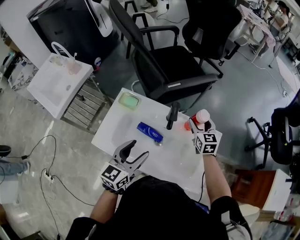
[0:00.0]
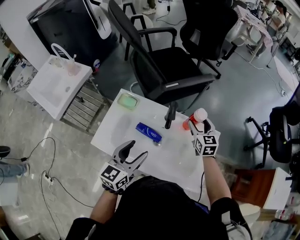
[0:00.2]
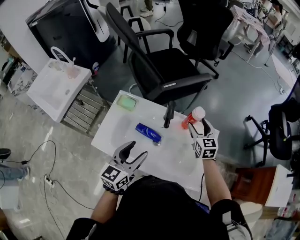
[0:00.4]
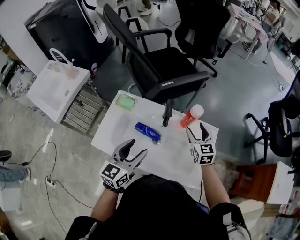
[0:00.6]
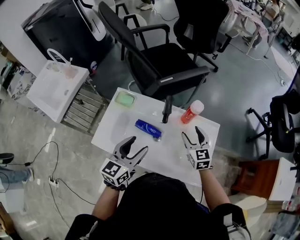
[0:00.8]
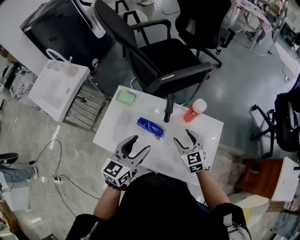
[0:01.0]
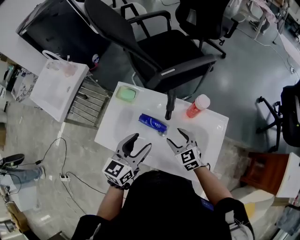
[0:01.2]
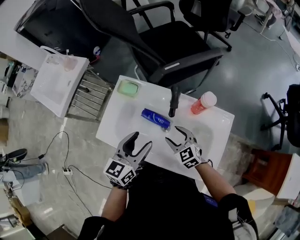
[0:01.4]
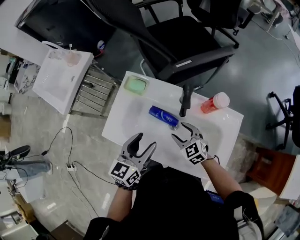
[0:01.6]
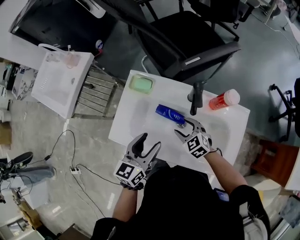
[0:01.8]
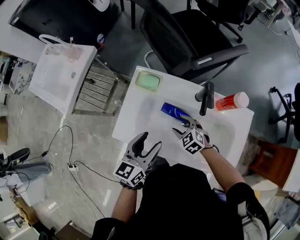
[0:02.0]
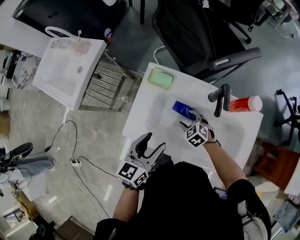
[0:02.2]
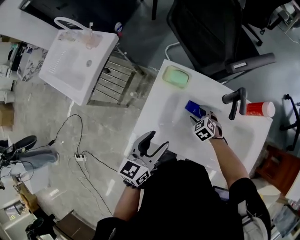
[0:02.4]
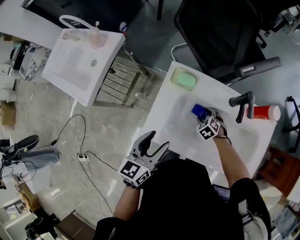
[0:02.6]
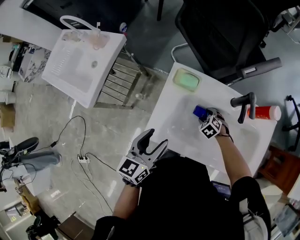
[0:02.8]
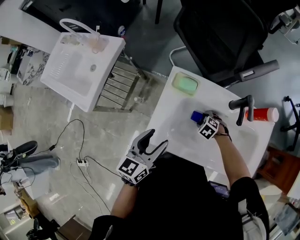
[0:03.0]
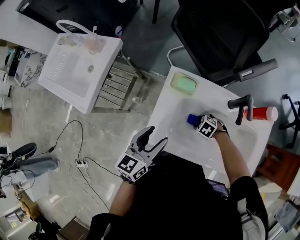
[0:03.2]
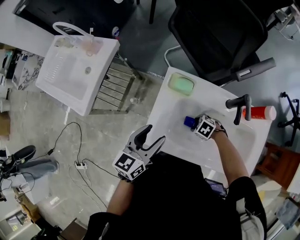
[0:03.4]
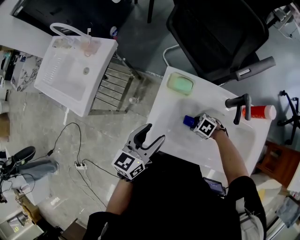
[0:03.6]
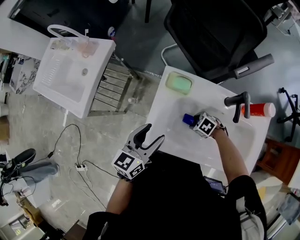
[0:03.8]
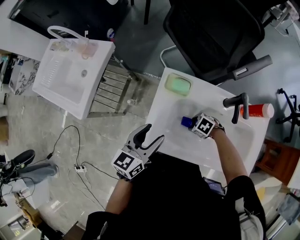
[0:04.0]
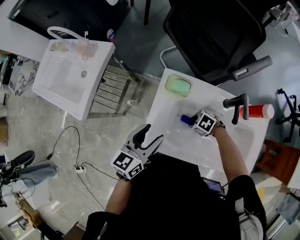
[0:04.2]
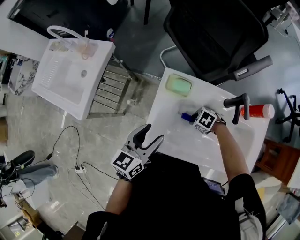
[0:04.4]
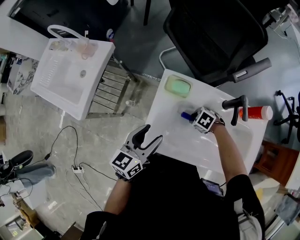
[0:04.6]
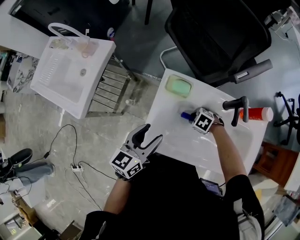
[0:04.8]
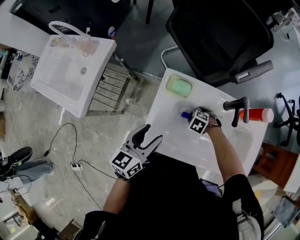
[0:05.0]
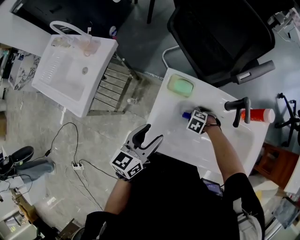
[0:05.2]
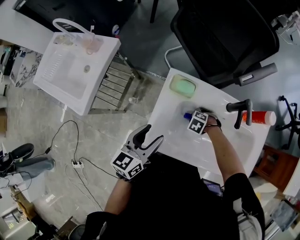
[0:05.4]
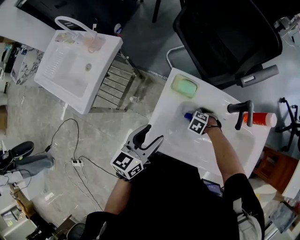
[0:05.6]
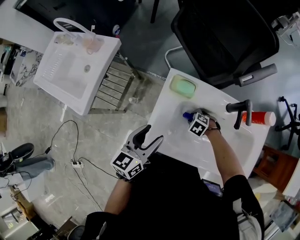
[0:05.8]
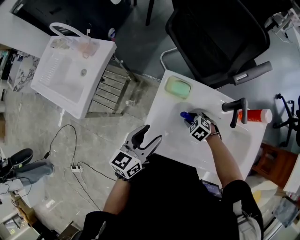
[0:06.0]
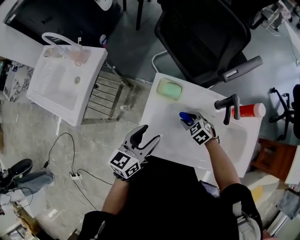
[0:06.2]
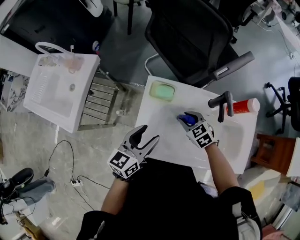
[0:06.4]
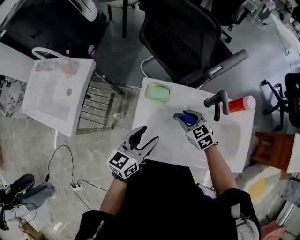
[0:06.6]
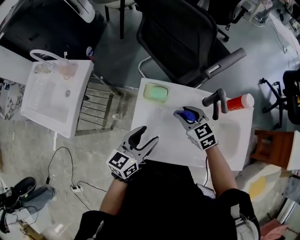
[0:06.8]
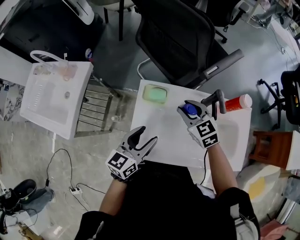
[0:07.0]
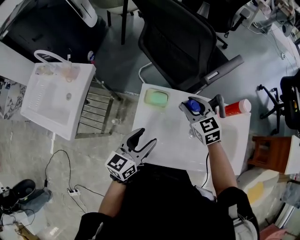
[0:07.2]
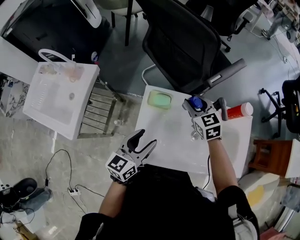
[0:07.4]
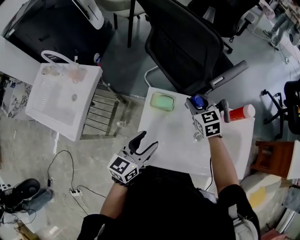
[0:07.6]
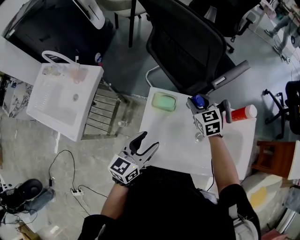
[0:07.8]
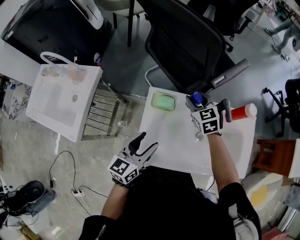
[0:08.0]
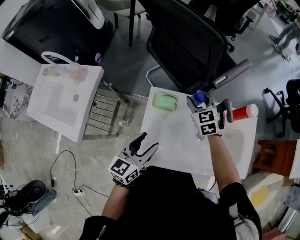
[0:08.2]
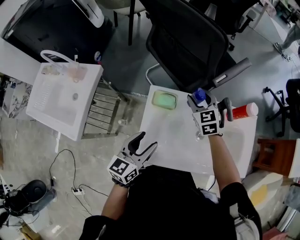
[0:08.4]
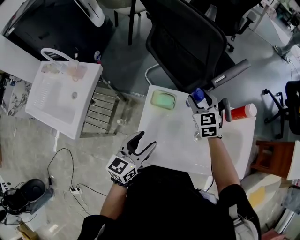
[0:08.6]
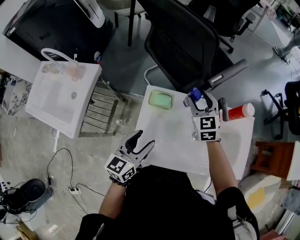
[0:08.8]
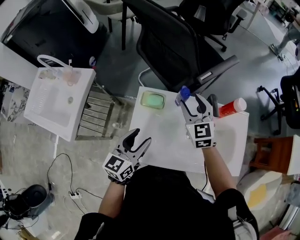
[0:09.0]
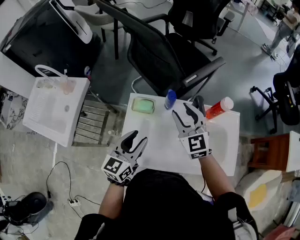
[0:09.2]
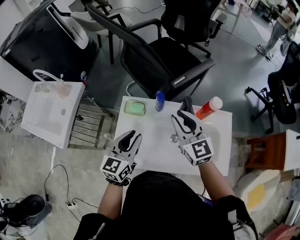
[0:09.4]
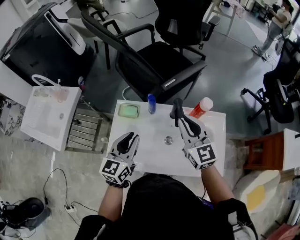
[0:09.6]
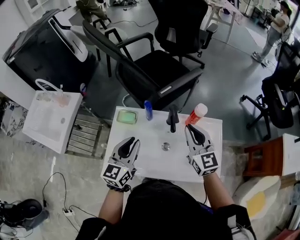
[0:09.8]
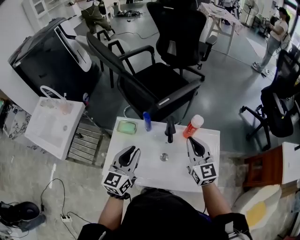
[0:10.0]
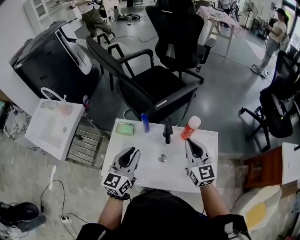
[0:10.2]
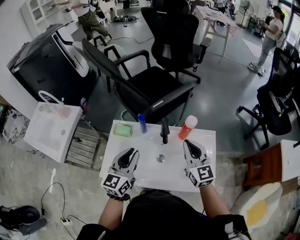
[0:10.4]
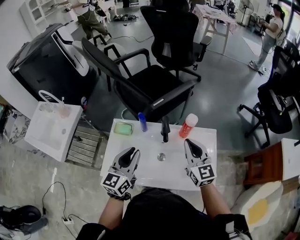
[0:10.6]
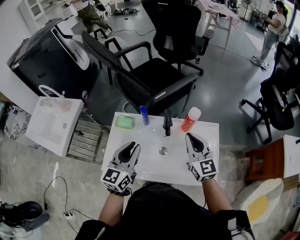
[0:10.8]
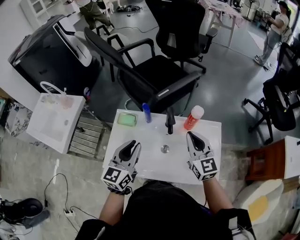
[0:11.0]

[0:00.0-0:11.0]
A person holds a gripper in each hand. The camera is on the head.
0:00.0 to 0:01.6: The right gripper goes roughly 25 cm backward, to the left and downward, and swivels approximately 30 degrees.
0:01.6 to 0:03.2: The right gripper goes some 15 cm downward, and angles its fingers downward, by some 40 degrees; the left gripper ends up about 20 cm from where it was.
0:03.2 to 0:04.8: The right gripper moves approximately 5 cm, and closes up.
0:04.8 to 0:06.2: The right gripper shifts by about 5 cm, and turns by about 30 degrees.
0:06.2 to 0:07.8: The right gripper travels upward and forward by some 20 cm, and rotates roughly 30 degrees.
0:07.8 to 0:09.4: The right gripper moves upward, backward and to the right, some 20 cm, and swivels some 20 degrees; the left gripper heads to the right, covering about 10 cm, and closes up.
0:09.4 to 0:11.0: The right gripper goes about 15 cm to the right, while the left gripper is displaced to the right by about 10 cm.

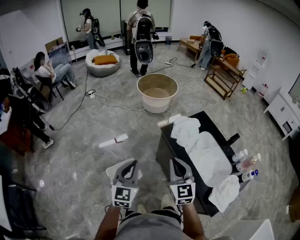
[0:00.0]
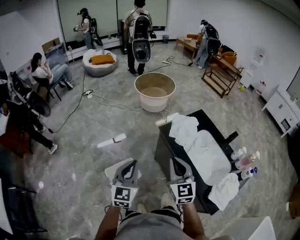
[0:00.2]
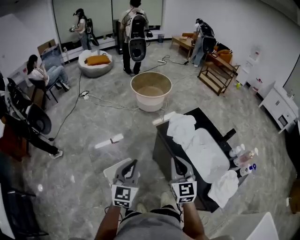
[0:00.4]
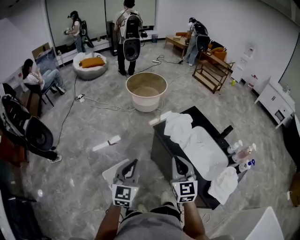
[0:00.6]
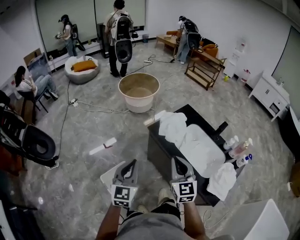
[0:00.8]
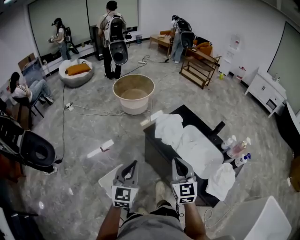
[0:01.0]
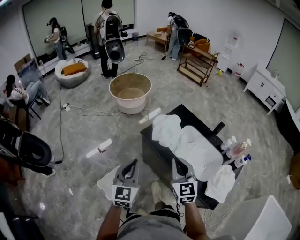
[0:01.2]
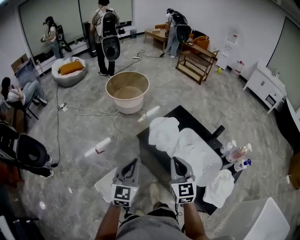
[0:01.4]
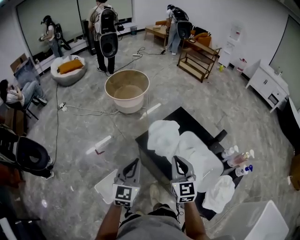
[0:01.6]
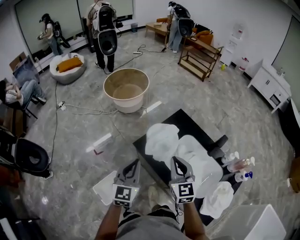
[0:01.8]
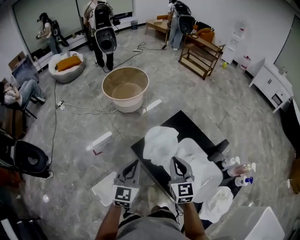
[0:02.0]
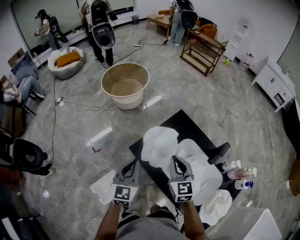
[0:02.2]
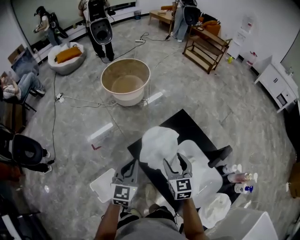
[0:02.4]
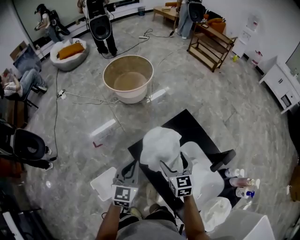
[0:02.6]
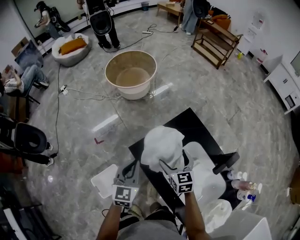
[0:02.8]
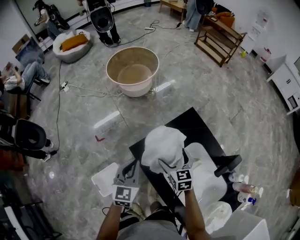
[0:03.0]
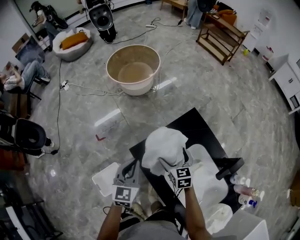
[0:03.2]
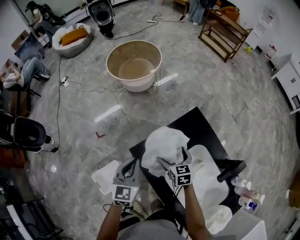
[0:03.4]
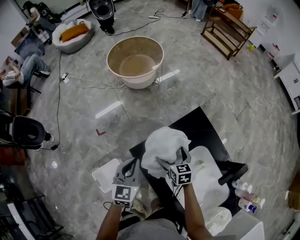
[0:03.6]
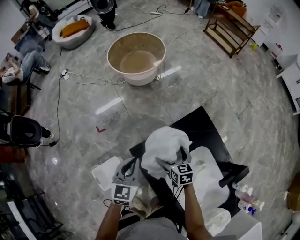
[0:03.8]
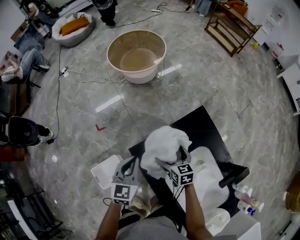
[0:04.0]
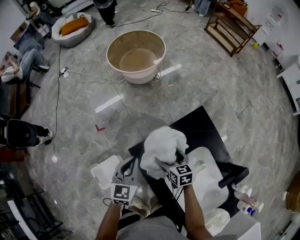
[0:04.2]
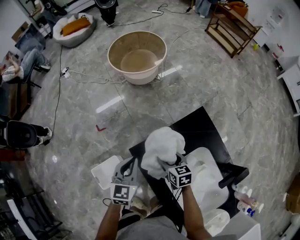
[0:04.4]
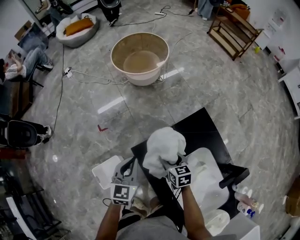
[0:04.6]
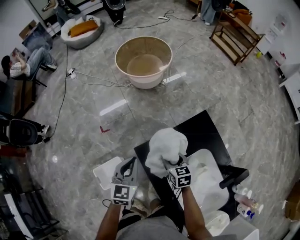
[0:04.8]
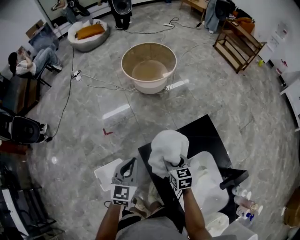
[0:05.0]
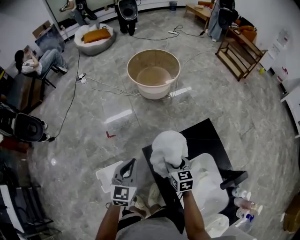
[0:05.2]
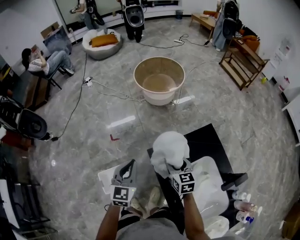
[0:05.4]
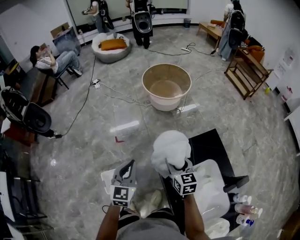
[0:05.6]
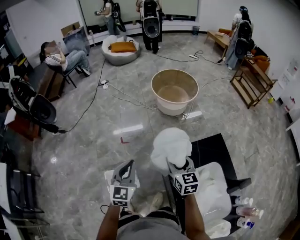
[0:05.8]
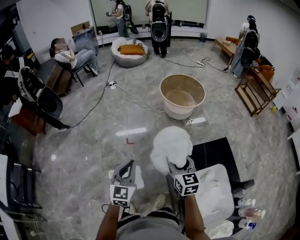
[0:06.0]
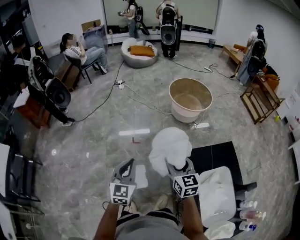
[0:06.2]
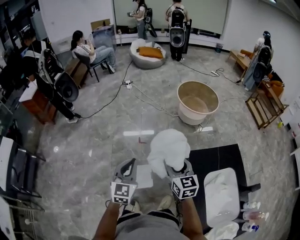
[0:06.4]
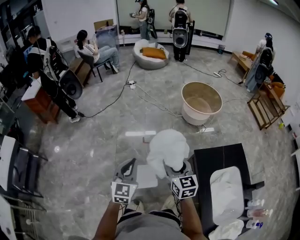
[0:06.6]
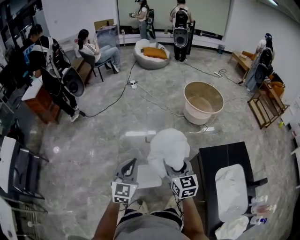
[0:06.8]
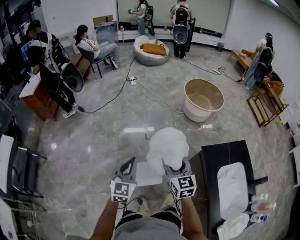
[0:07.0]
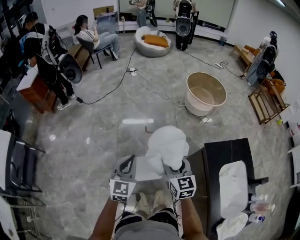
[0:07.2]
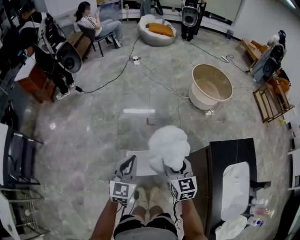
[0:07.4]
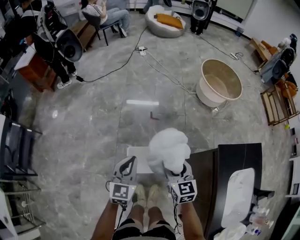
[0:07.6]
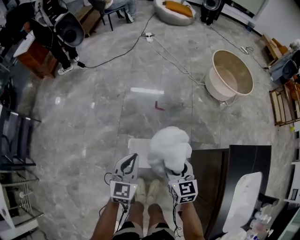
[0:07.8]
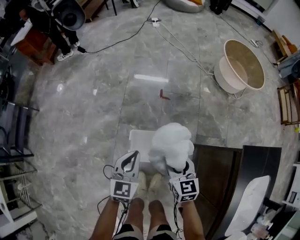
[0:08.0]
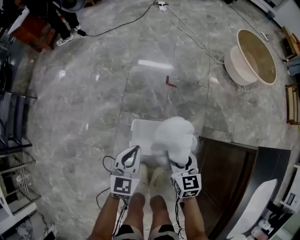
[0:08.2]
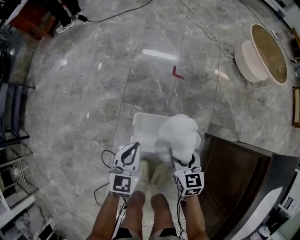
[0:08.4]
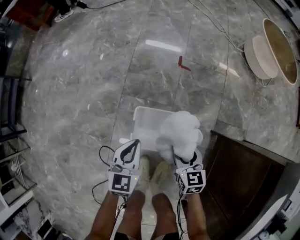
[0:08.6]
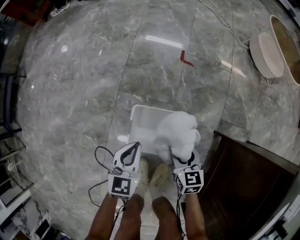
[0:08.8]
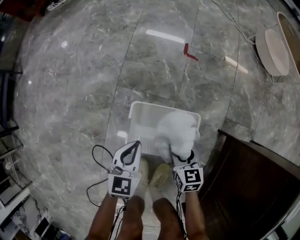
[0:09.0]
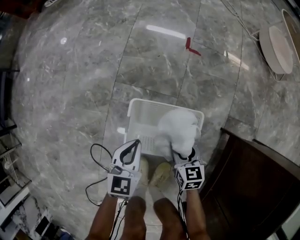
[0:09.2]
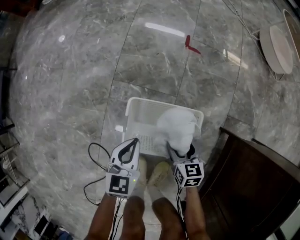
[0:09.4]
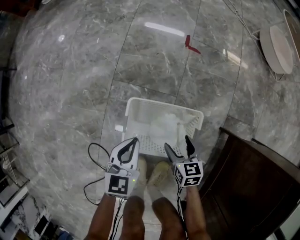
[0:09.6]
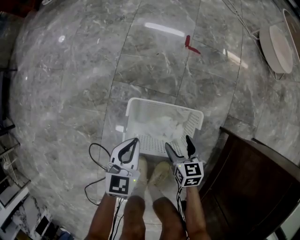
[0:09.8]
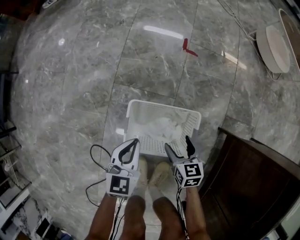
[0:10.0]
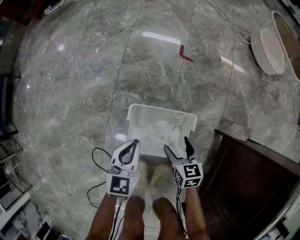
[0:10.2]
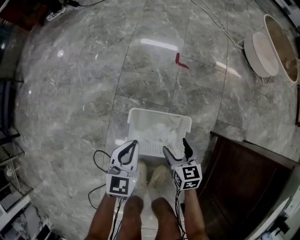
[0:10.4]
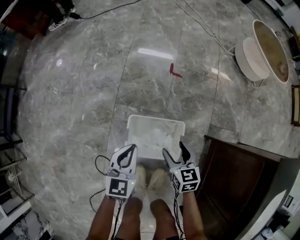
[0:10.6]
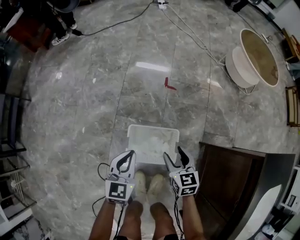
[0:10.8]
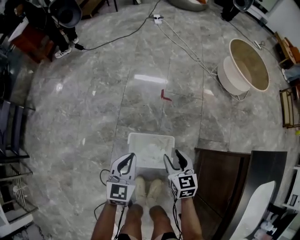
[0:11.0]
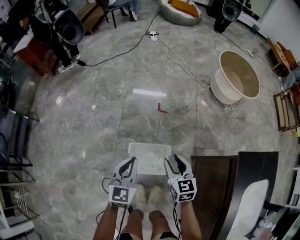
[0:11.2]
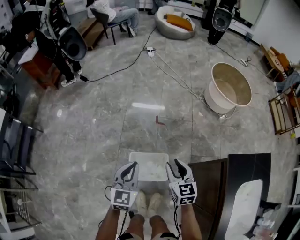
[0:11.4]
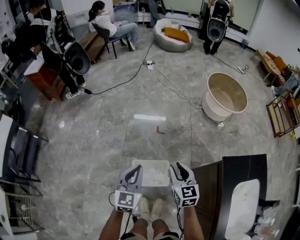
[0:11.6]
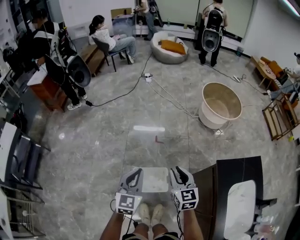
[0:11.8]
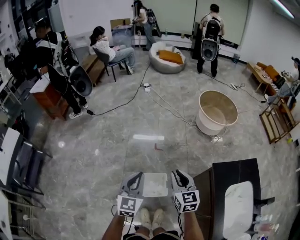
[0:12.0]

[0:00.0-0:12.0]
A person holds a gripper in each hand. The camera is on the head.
0:00.0 to 0:01.6: The grippers both shift forward and to the right by about 20 cm.
0:01.6 to 0:03.0: Both grippers move forward and downward, about 25 cm. The right gripper rotates about 30 degrees, and opens up.
0:03.0 to 0:04.4: The right gripper heads downward, covering approximately 10 cm, swivels about 20 degrees, and closes up. Meanwhile the left gripper heads forward and downward, covering approximately 10 cm.
0:04.4 to 0:06.0: The left gripper goes some 35 cm to the left, upward and backward, and swivels some 30 degrees; the right gripper travels upward and to the left by approximately 35 cm, and swivels some 30 degrees.
0:06.0 to 0:07.6: Both grippers travel together to the left and downward, roughly 35 cm.
0:07.6 to 0:09.0: Both grippers travel together downward, approximately 60 cm. The left gripper rotates roughly 20 degrees. The right gripper turns by roughly 20 degrees.
0:09.0 to 0:10.4: Both grippers travel together upward, some 5 cm.
0:10.4 to 0:12.0: Both grippers travel together upward, some 60 cm. The right gripper changes its angle by approximately 30 degrees, and closes up. Meanwhile the left gripper turns by some 30 degrees.

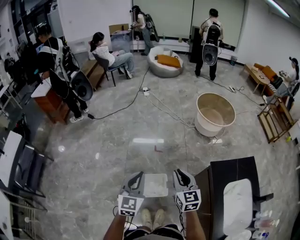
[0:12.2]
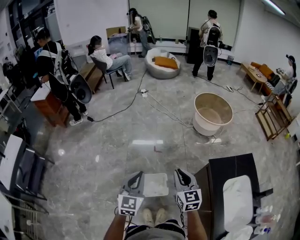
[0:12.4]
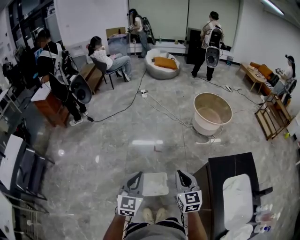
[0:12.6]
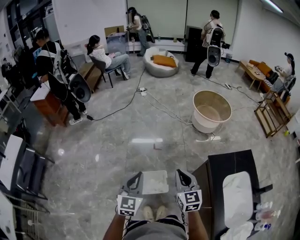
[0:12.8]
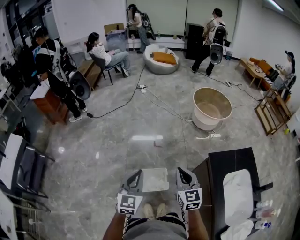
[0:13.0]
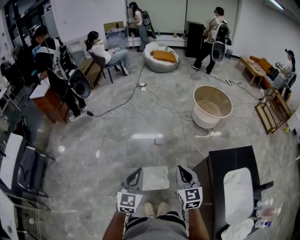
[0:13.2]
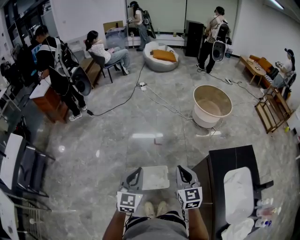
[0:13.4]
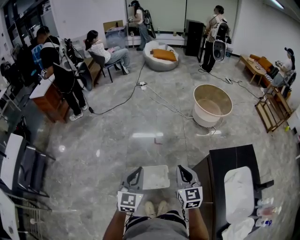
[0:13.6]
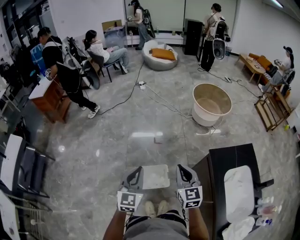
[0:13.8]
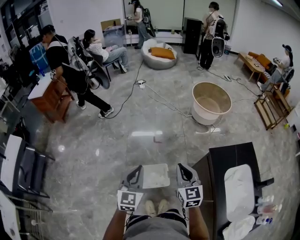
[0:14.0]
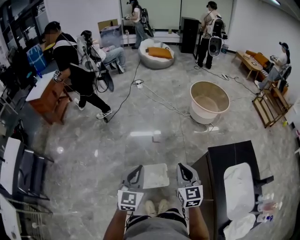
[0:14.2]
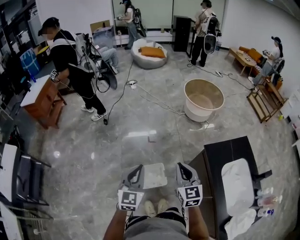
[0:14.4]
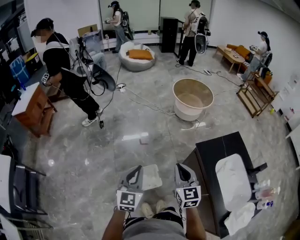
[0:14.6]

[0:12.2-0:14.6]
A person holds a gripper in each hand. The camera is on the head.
0:12.2 to 0:13.4: The right gripper shifts by about 5 cm.
0:13.4 to 0:14.6: The grippers move only a little.
